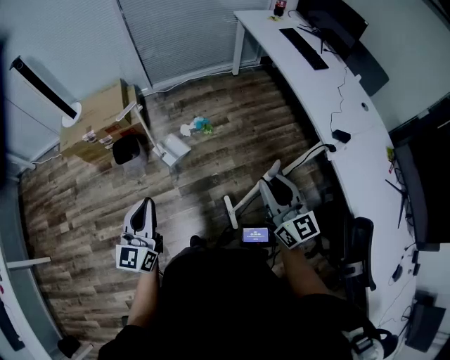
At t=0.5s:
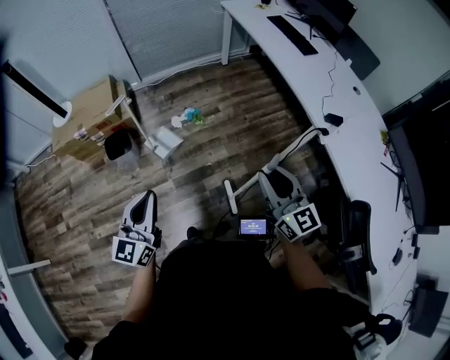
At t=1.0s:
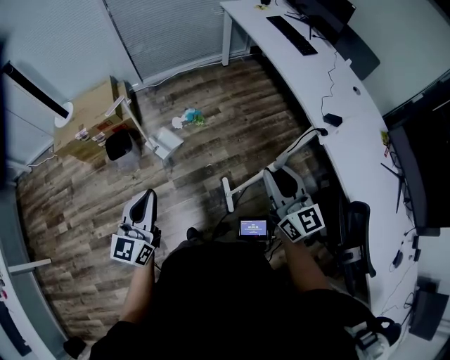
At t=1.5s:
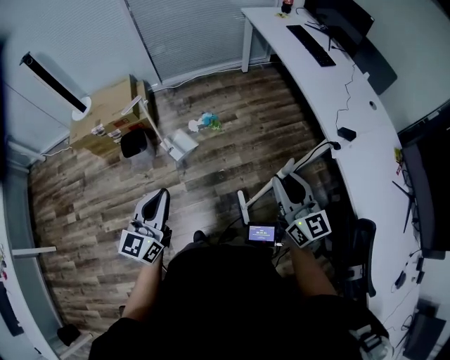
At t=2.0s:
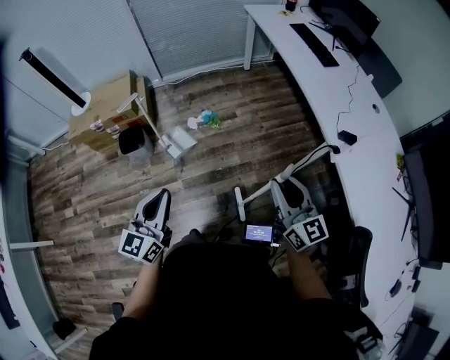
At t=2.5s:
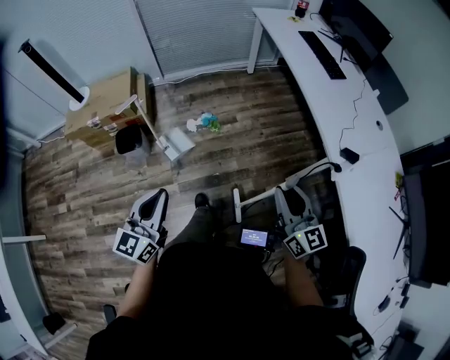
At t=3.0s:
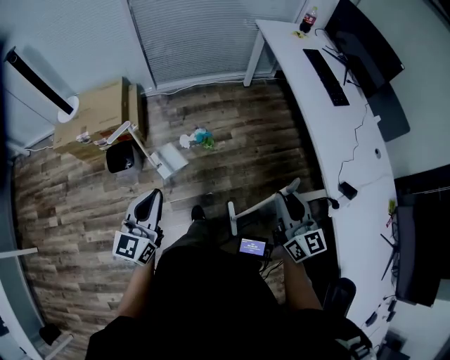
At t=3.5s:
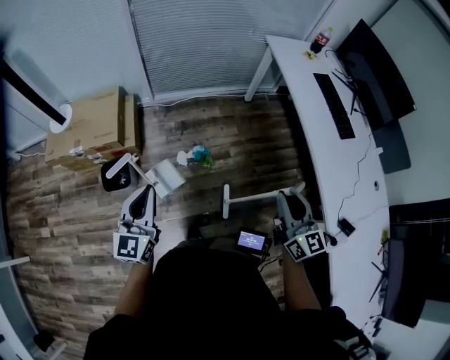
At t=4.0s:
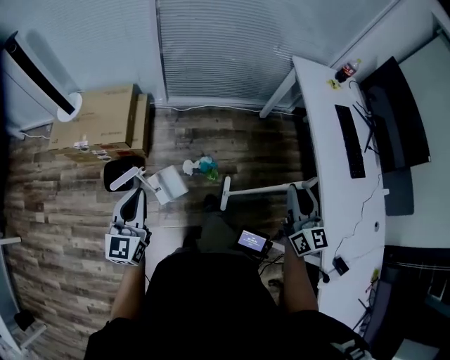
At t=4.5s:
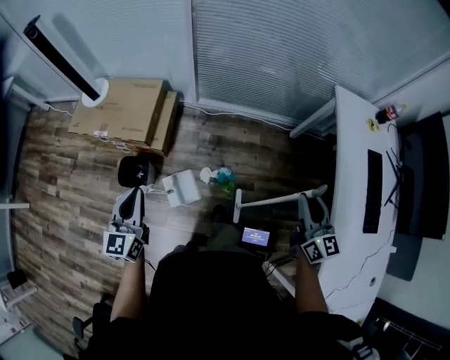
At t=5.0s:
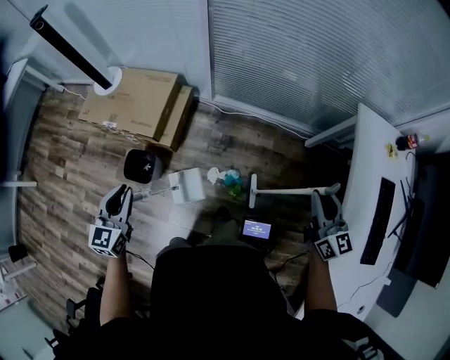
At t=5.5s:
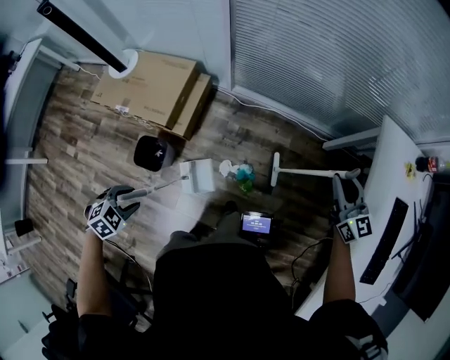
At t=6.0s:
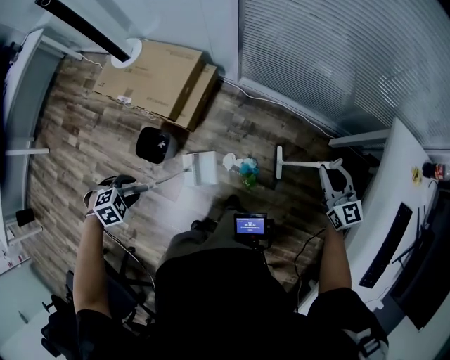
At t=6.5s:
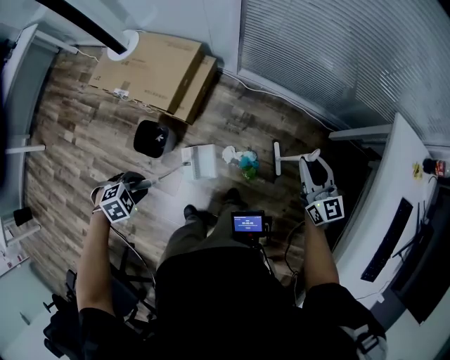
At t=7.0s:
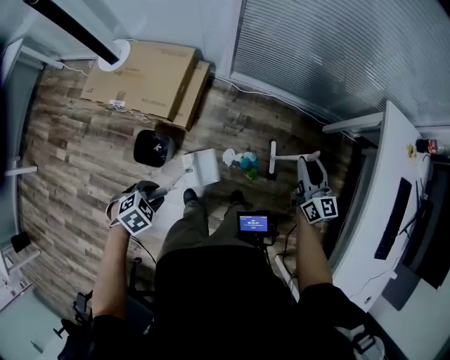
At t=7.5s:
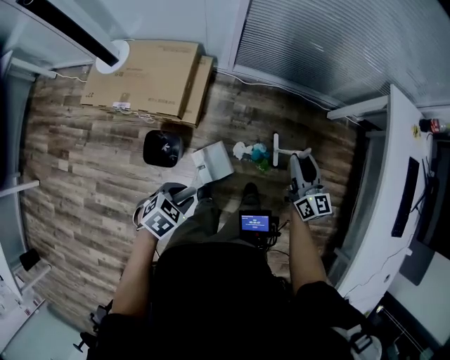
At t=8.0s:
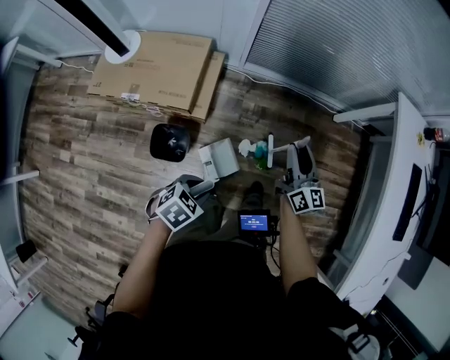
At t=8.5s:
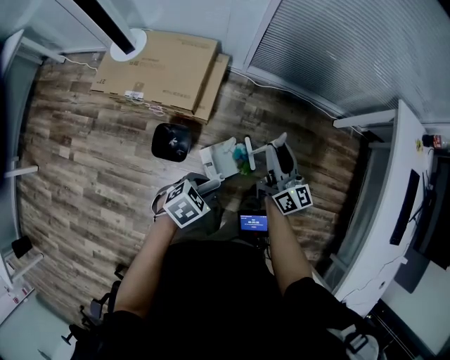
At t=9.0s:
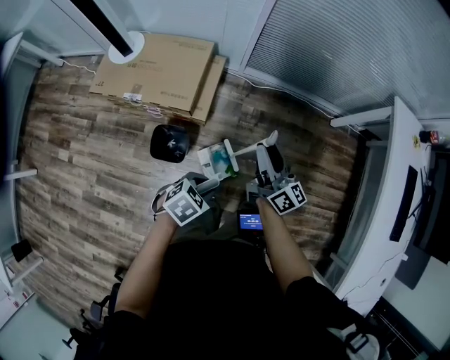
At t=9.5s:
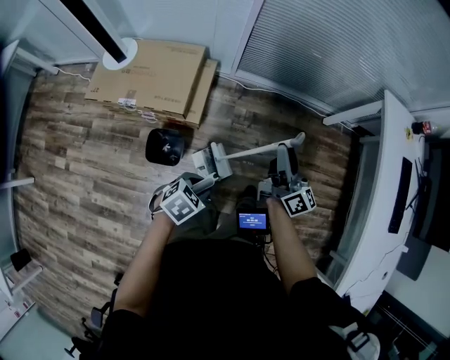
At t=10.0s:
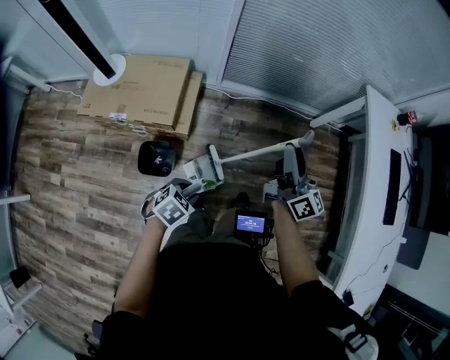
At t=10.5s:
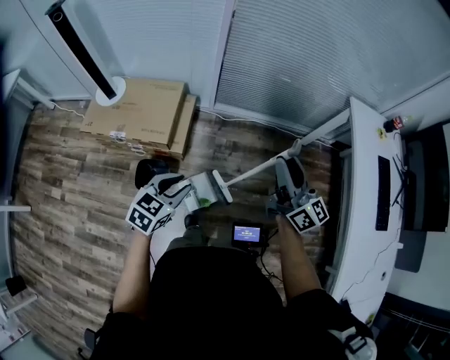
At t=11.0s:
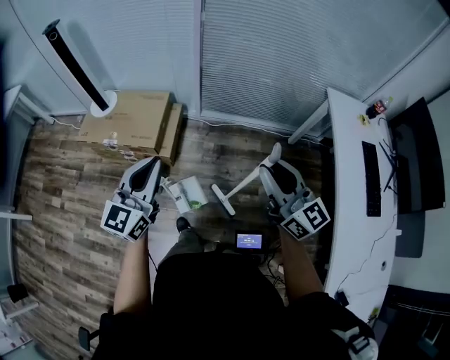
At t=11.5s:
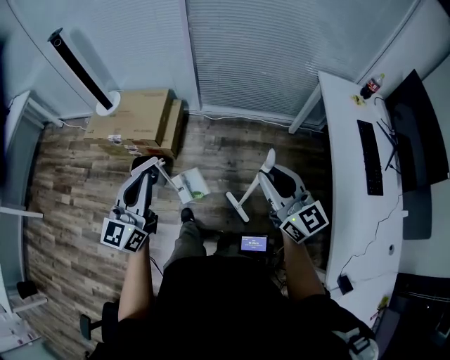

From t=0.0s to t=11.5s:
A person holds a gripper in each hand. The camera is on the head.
From t=0.0s to t=2.0s: The two grippers go approximately 10 cm to the right.
From t=2.0s to t=4.0s: The two grippers travel together, forward, roughly 50 cm. The left gripper turns by approximately 20 degrees.
From t=4.0s to t=6.0s: The left gripper heads downward, covering about 20 cm, angles its fingers downward, by some 80 degrees, and opens its fingers. The right gripper ends up some 40 cm from where it was, and swivels about 40 degrees.
From t=6.0s to t=7.5s: The right gripper changes place by roughly 25 cm, and turns by about 30 degrees. The left gripper turns by some 30 degrees.
From t=7.5s to t=9.5s: The right gripper goes some 10 cm to the left, upward and backward, and changes its angle by some 30 degrees.
From t=9.5s to t=11.5s: The left gripper shifts approximately 35 cm upward, tips its fingers upward by roughly 60 degrees, and closes its fingers, while the right gripper ends up some 35 cm from where it was, and turns by some 40 degrees.

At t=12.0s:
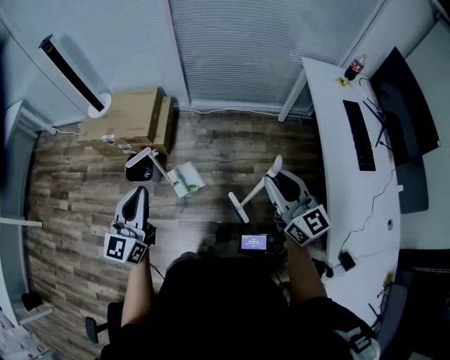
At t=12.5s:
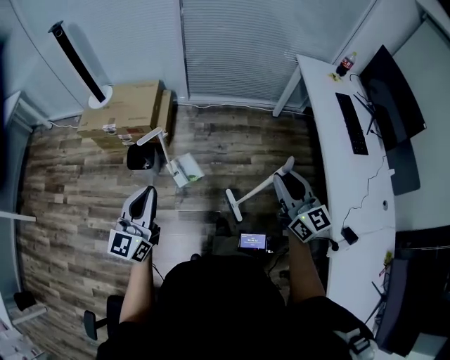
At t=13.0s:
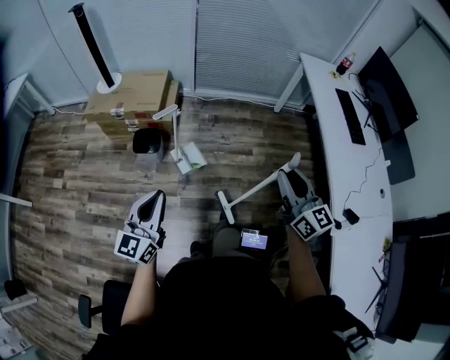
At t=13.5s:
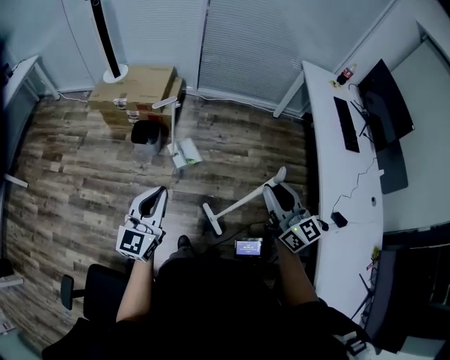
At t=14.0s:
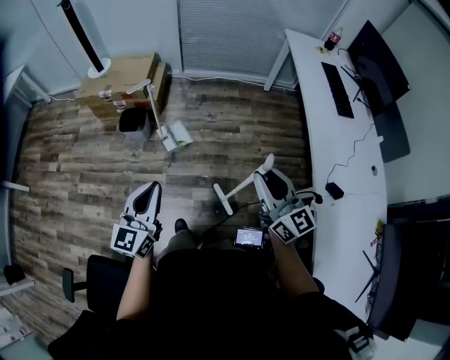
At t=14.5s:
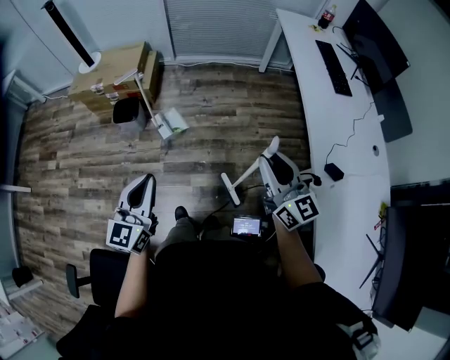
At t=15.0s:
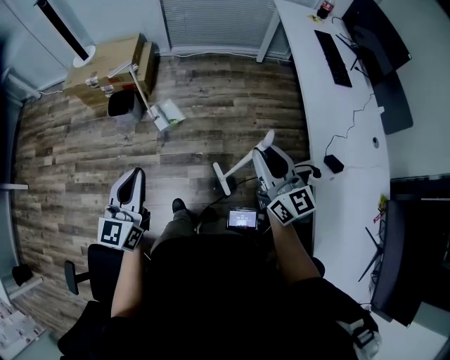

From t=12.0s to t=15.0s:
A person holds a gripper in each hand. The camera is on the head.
From t=12.0s to t=13.5s: The grippers both shift backward by about 25 cm.
From t=13.5s to t=15.0s: The left gripper travels to the right by some 10 cm; the right gripper is displaced to the right and downward by roughly 10 cm.

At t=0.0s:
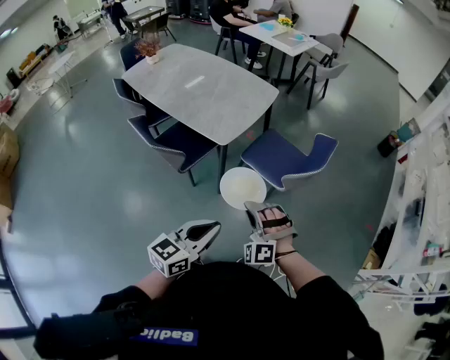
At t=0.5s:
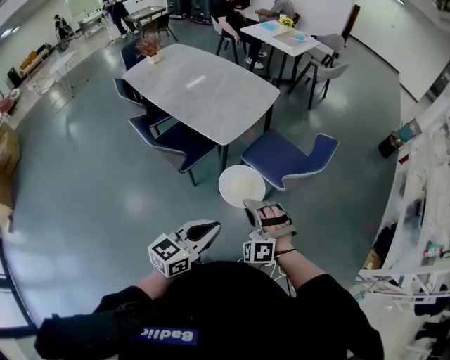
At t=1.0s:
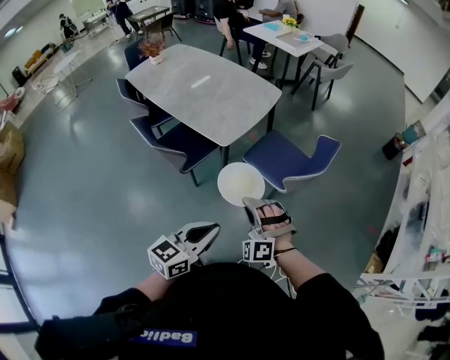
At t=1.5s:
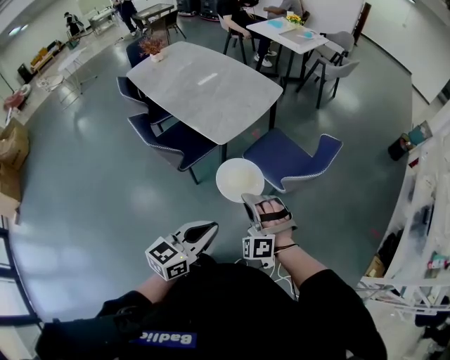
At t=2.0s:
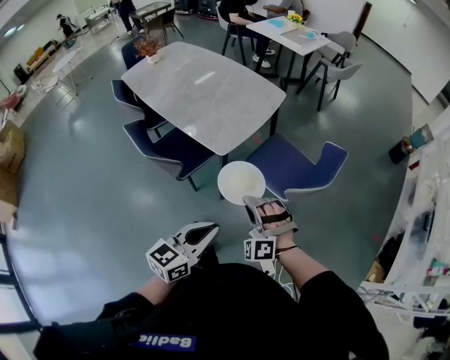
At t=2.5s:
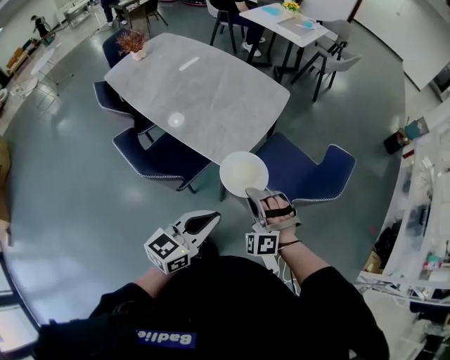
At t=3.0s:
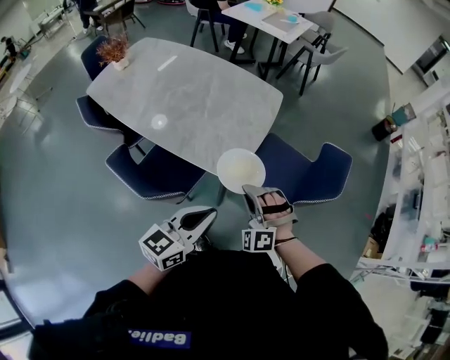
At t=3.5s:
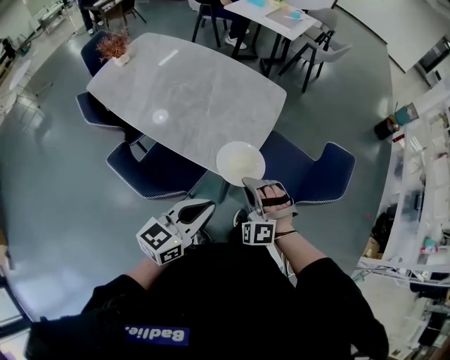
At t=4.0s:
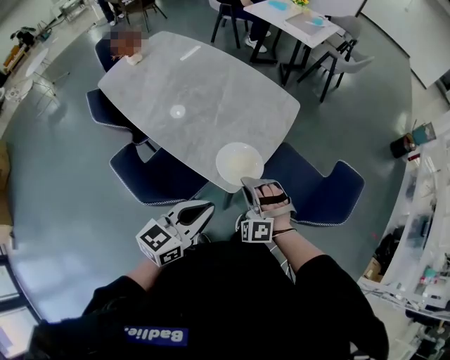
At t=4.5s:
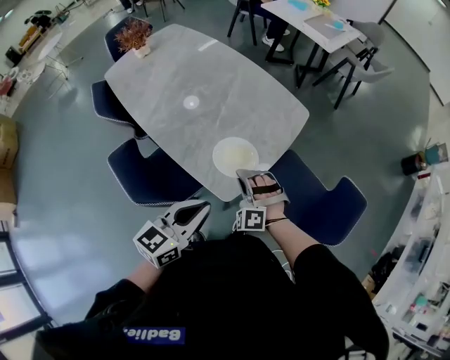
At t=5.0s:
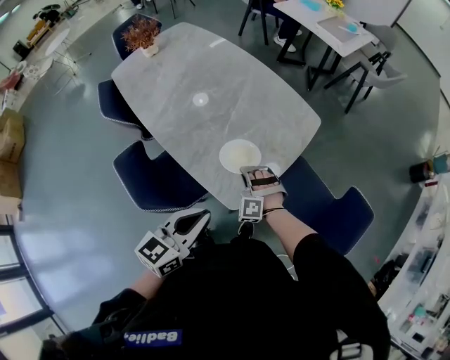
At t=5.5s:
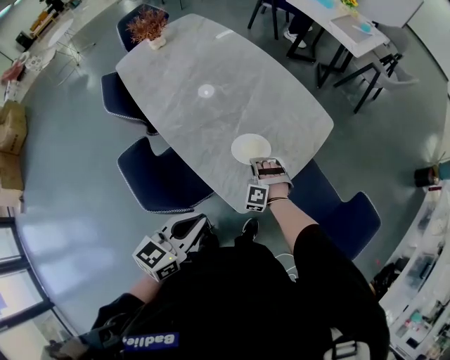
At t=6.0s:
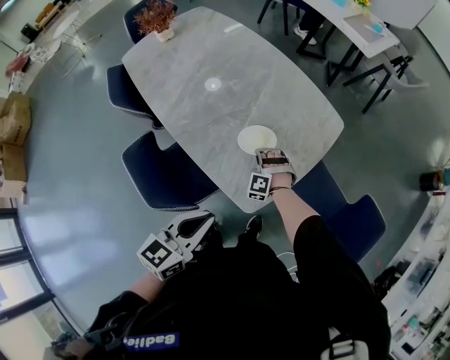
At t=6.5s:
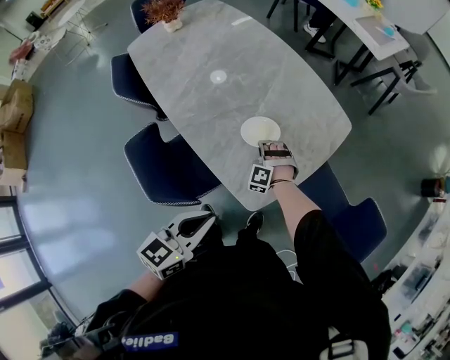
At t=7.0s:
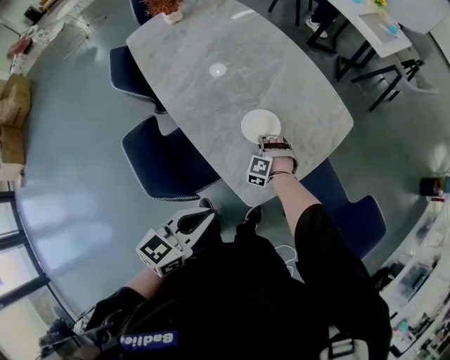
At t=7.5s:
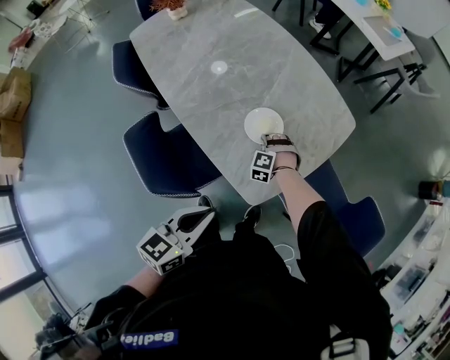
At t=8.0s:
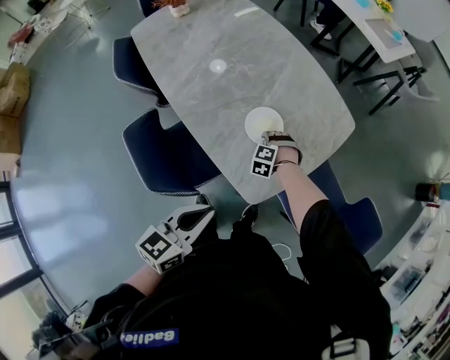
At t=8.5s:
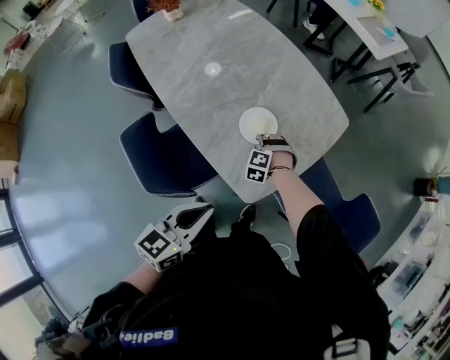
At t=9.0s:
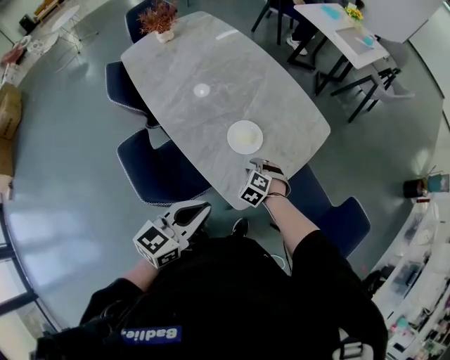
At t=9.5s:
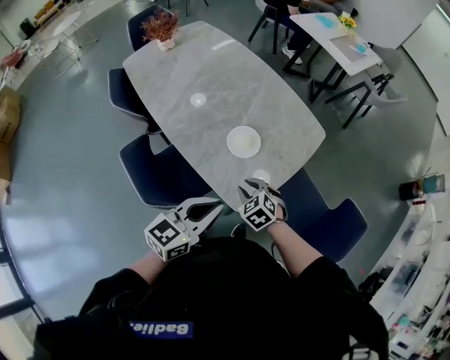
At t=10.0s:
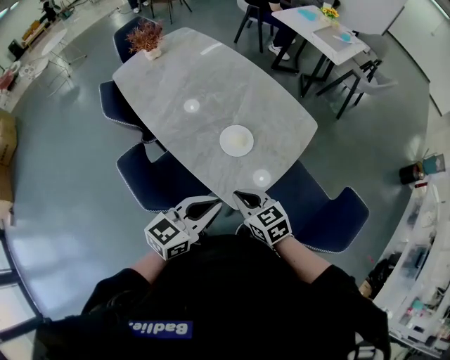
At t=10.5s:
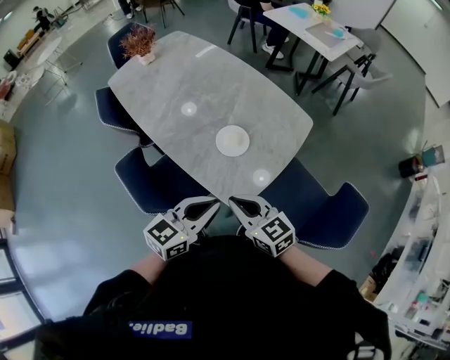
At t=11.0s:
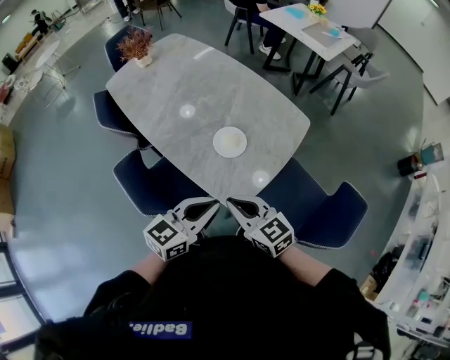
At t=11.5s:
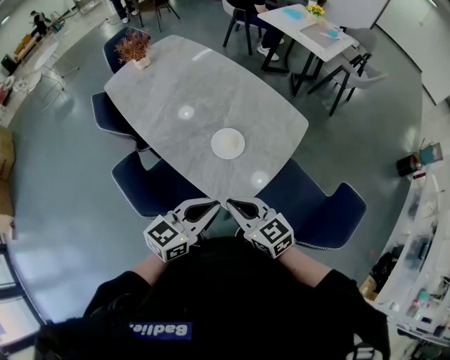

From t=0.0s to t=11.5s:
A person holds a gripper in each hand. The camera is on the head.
From t=0.0s to t=2.0s: The left gripper changes place by approximately 10 cm.
From t=2.0s to t=4.0s: The left gripper ends up some 30 cm from where it was.
From t=4.0s to t=6.0s: The left gripper moves some 10 cm.
From t=7.5s to t=9.5s: The left gripper goes approximately 5 cm upward.

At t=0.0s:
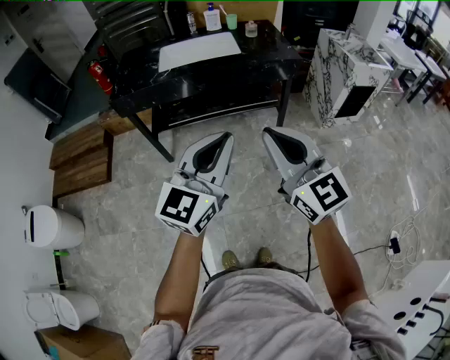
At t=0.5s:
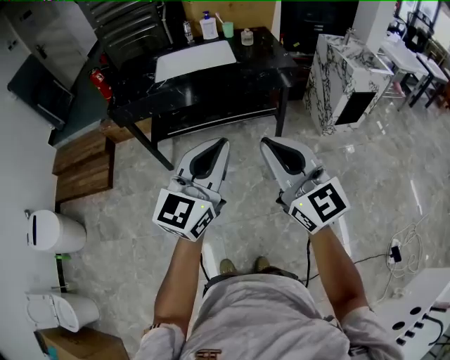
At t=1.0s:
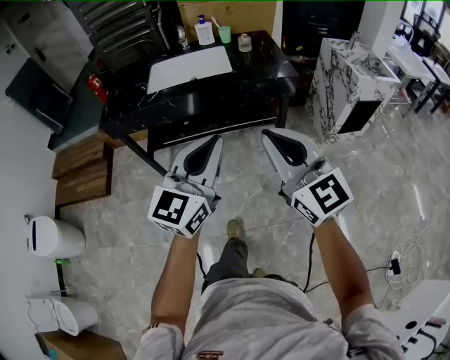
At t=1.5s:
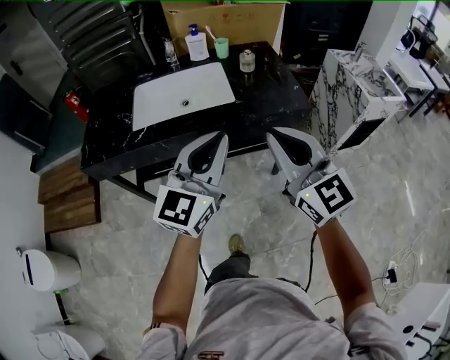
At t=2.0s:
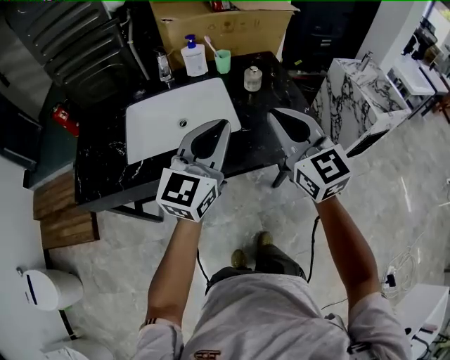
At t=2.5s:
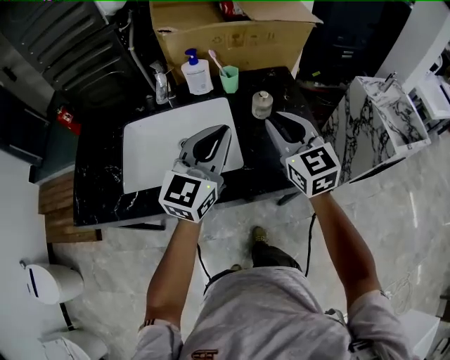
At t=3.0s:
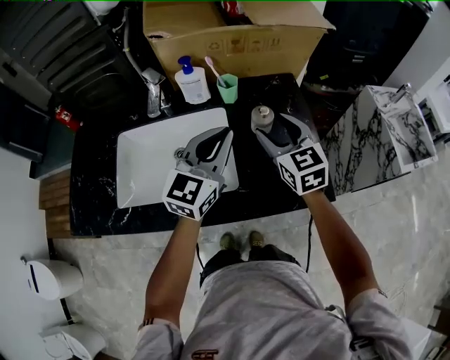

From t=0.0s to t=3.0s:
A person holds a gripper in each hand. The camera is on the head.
From t=0.0s to t=1.5s: Both grippers move forward, approximately 35 cm.
From t=1.5s to t=3.0s: The pair of grippers is taken forward, roughly 40 cm. The right gripper swivels roughly 20 degrees, and opens its fingers.
